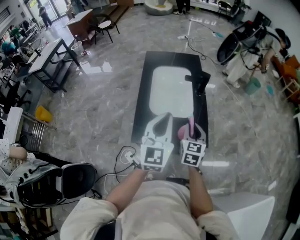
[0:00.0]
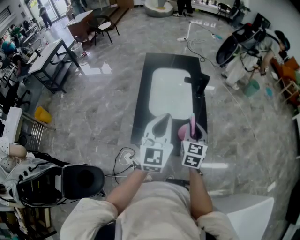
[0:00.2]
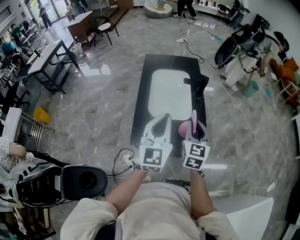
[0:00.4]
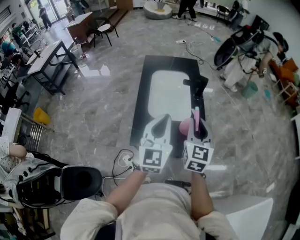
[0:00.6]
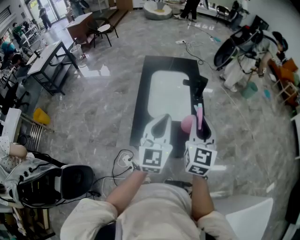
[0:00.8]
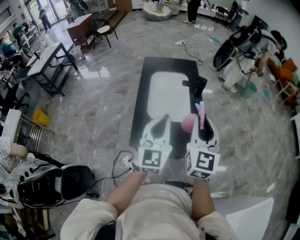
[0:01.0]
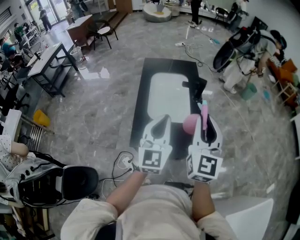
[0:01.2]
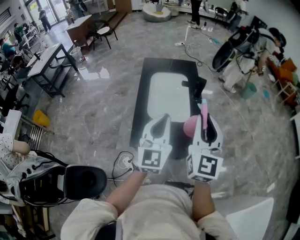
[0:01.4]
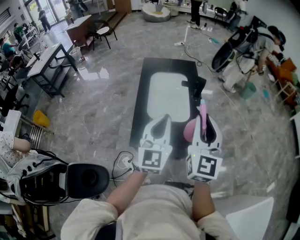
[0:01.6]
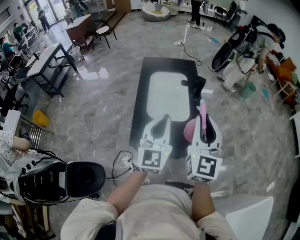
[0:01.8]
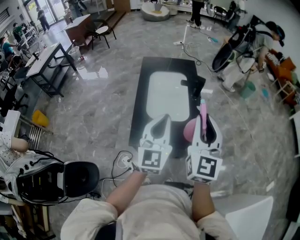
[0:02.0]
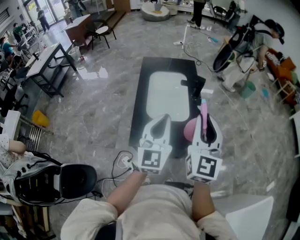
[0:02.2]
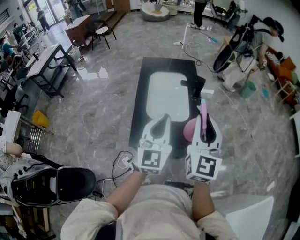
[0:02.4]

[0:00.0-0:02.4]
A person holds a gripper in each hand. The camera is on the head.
0:00.0 to 0:01.2: The right gripper travels upward by approximately 20 cm, and swivels roughly 30 degrees.
0:01.2 to 0:02.4: The grippers move only a little.

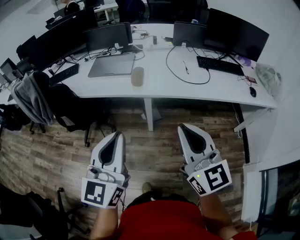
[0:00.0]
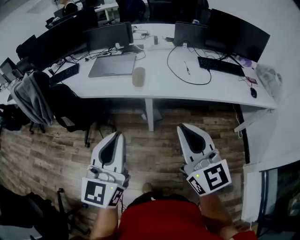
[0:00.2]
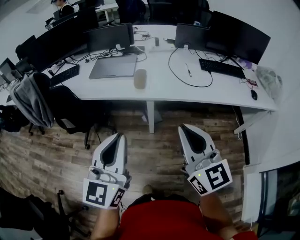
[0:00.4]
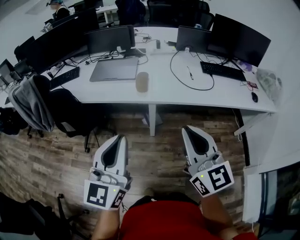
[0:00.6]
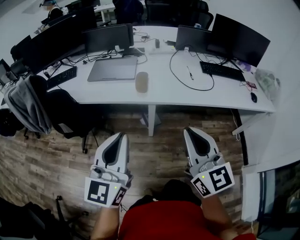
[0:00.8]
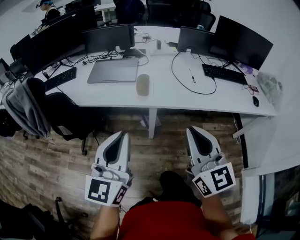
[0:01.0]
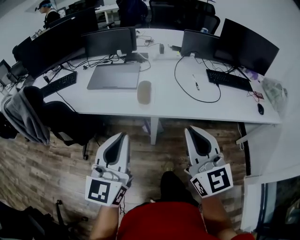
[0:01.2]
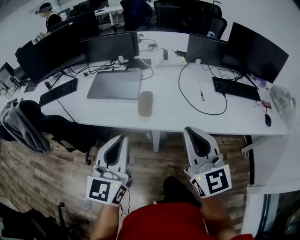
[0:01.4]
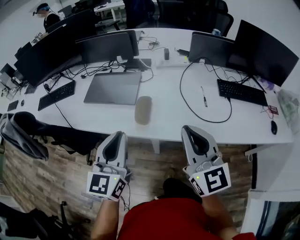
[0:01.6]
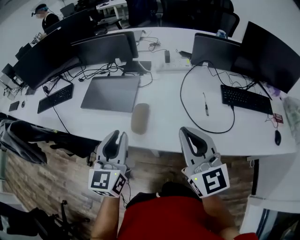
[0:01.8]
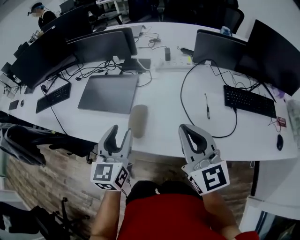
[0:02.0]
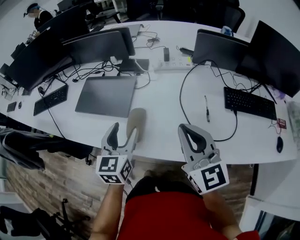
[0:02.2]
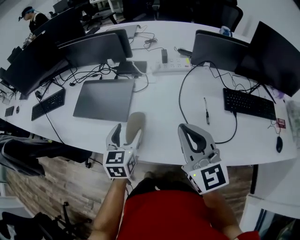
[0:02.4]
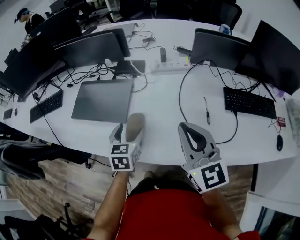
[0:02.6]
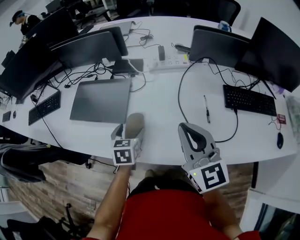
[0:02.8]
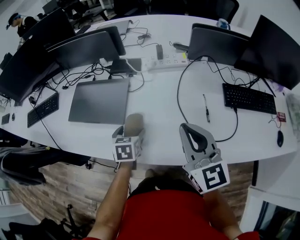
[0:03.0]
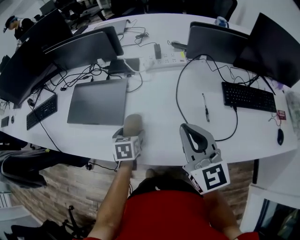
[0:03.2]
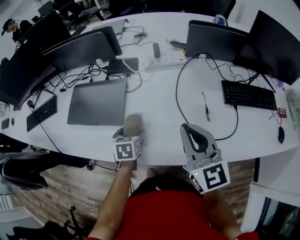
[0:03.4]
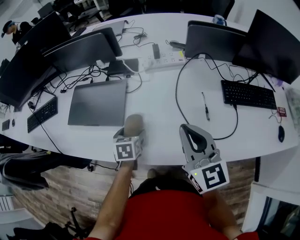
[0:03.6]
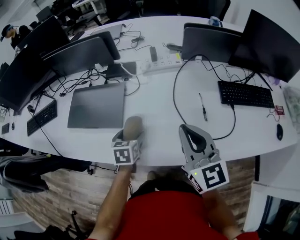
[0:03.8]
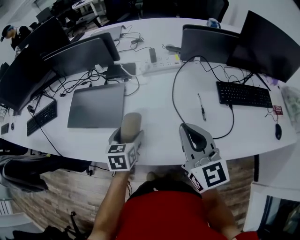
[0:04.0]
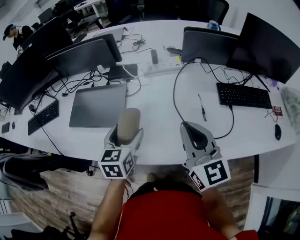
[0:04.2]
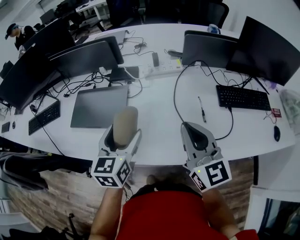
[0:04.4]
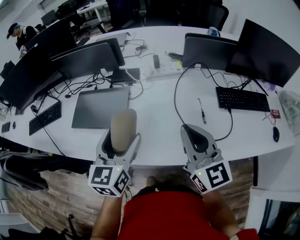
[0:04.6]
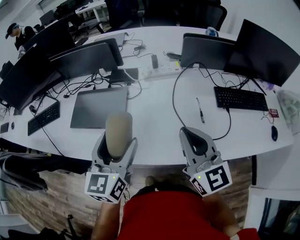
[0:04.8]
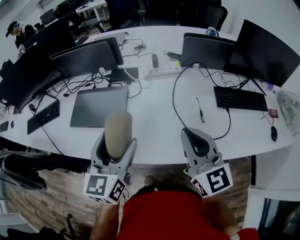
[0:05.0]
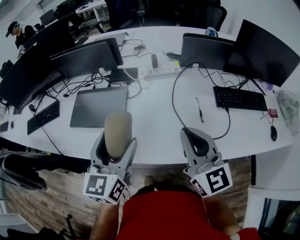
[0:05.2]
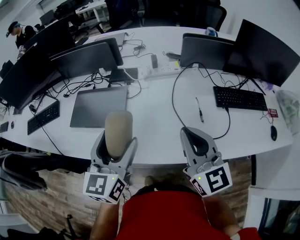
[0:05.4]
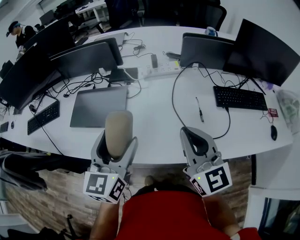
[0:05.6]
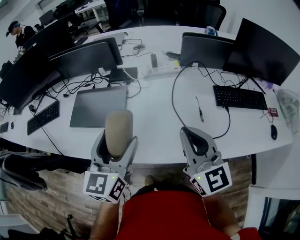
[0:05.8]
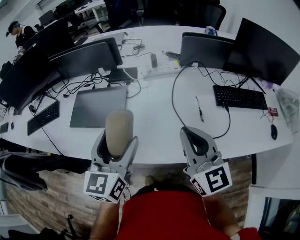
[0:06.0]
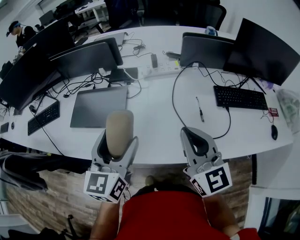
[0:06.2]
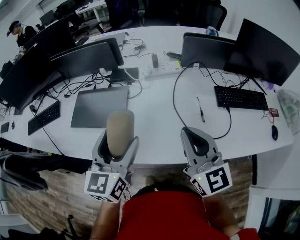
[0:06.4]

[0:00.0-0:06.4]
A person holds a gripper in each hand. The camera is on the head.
0:00.0 to 0:01.6: The grippers both shift forward by about 30 cm.
0:01.6 to 0:03.2: The right gripper goes approximately 15 cm forward. Meanwhile the left gripper is displaced downward and forward by approximately 35 cm, tilts its fingers some 50 degrees downward, and opens its fingers.
0:03.2 to 0:04.8: The right gripper changes place by some 5 cm; the left gripper goes some 25 cm upward, and tips its fingers upward by about 40 degrees.
0:04.8 to 0:06.4: Both grippers stay put.

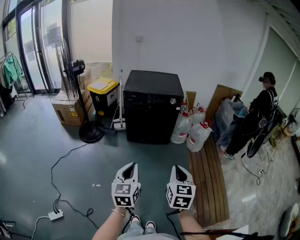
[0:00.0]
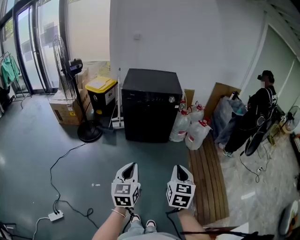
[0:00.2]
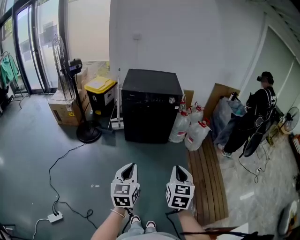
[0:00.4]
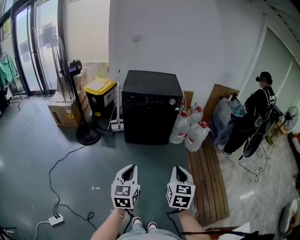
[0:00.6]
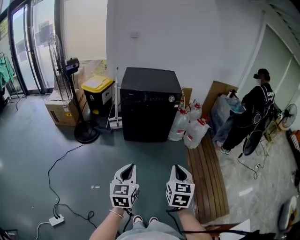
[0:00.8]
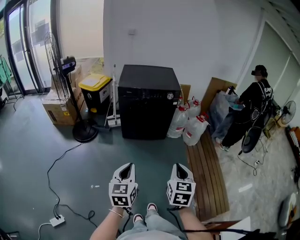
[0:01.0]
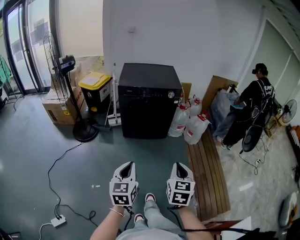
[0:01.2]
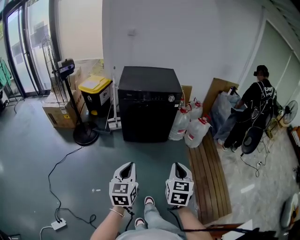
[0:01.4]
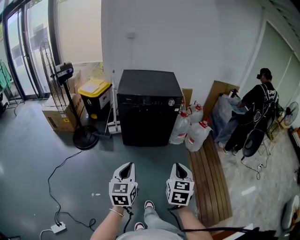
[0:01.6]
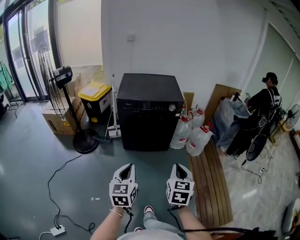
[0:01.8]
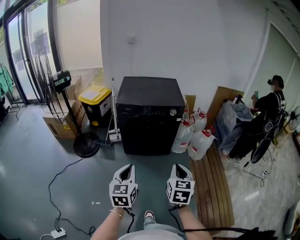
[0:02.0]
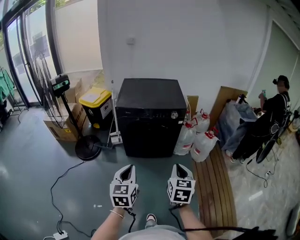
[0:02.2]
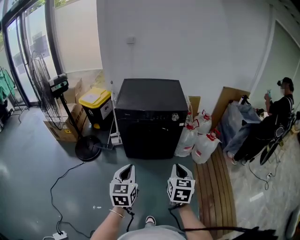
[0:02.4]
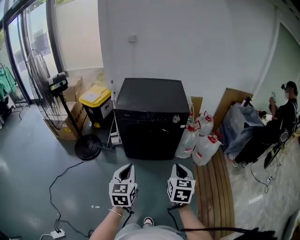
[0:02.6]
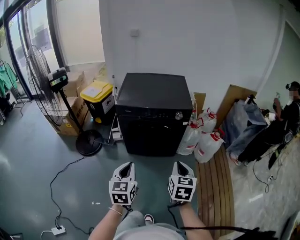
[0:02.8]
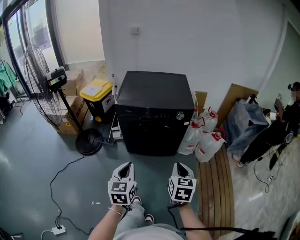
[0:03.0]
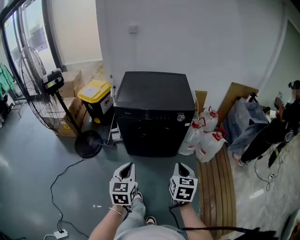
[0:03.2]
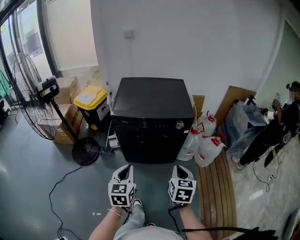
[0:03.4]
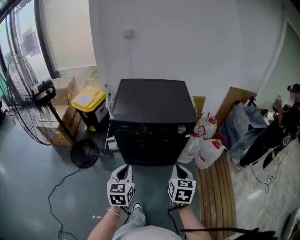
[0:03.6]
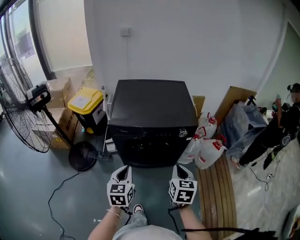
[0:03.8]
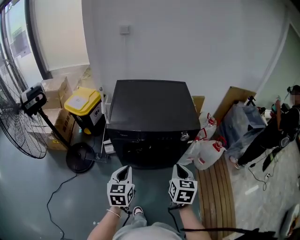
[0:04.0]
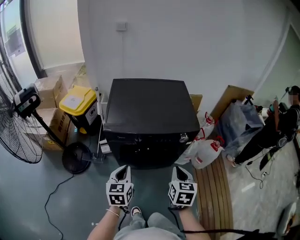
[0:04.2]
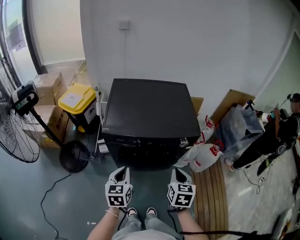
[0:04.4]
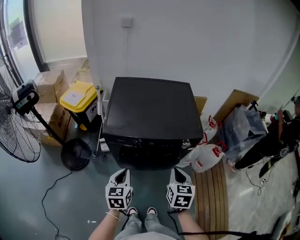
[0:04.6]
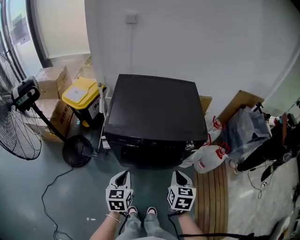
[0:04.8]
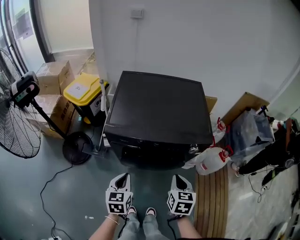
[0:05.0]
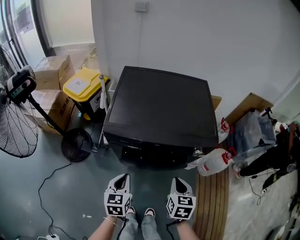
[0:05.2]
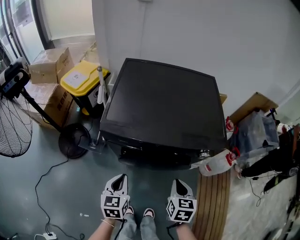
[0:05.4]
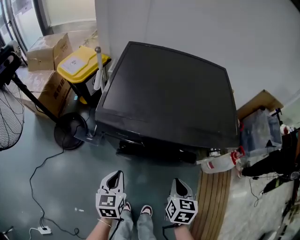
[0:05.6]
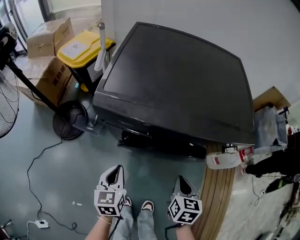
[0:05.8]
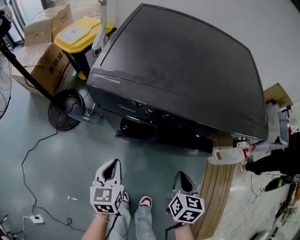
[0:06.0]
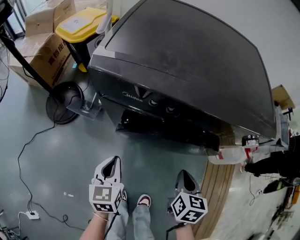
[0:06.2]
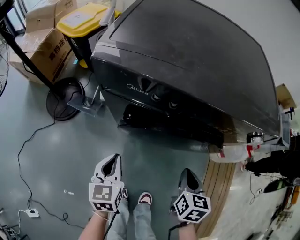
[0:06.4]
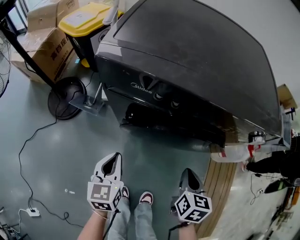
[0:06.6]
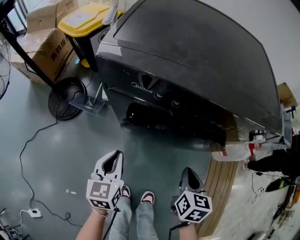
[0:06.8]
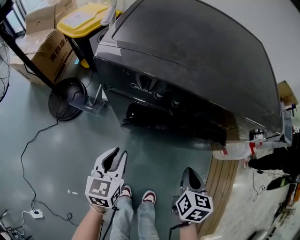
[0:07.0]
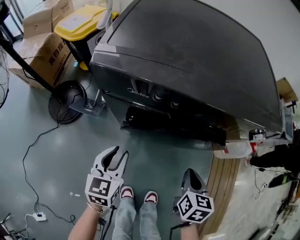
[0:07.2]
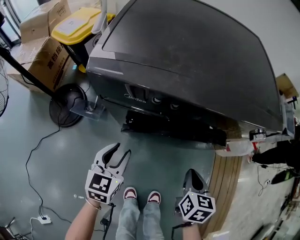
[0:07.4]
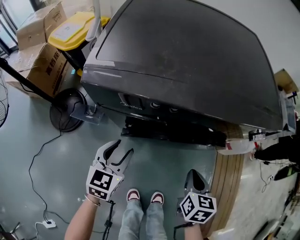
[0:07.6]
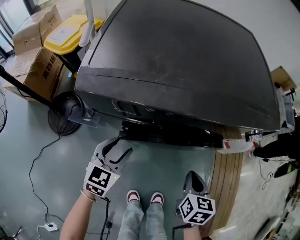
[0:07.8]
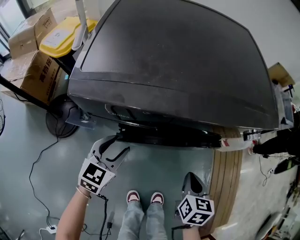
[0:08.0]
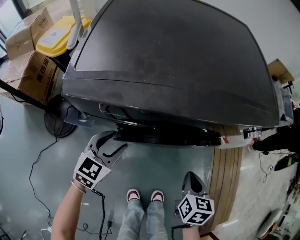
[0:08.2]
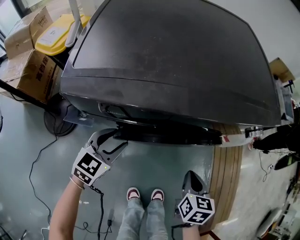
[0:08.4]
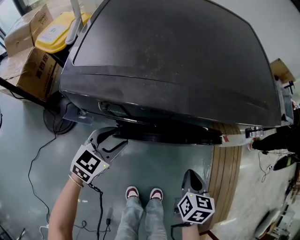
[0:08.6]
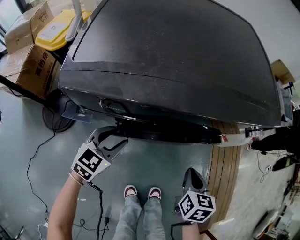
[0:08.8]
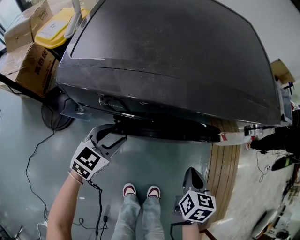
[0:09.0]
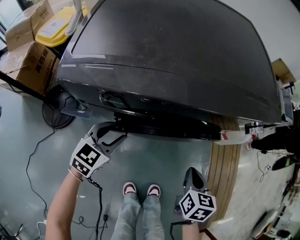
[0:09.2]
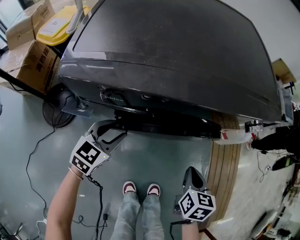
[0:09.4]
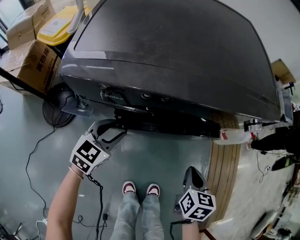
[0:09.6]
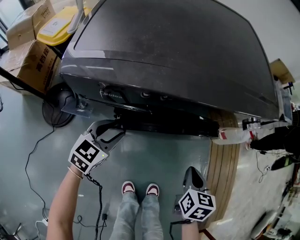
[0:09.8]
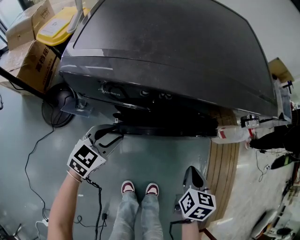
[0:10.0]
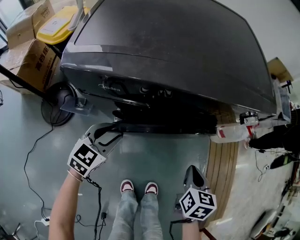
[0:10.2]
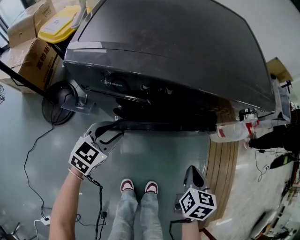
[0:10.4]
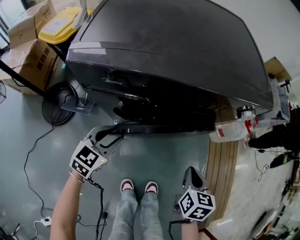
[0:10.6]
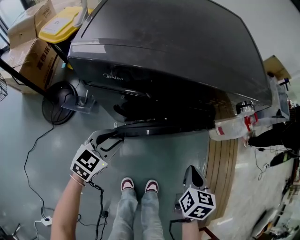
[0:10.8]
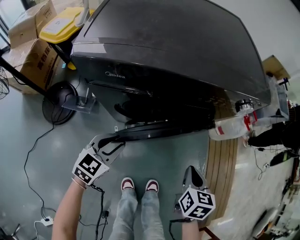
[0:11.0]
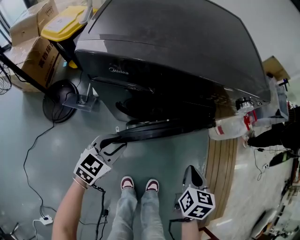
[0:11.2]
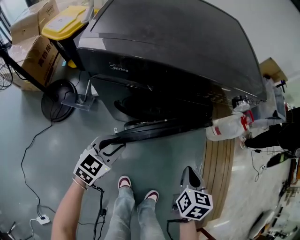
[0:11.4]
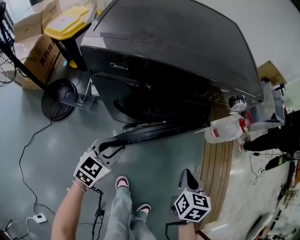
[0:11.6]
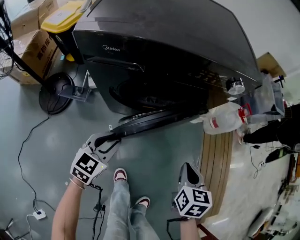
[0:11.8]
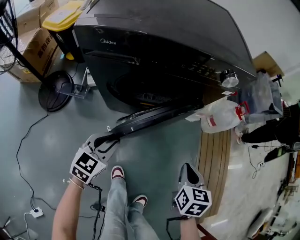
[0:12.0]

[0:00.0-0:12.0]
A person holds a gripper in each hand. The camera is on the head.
0:00.0 to 0:01.6: The right gripper goes roughly 10 cm forward; the left gripper heads forward and to the left, covering about 10 cm.
0:01.6 to 0:03.0: Both grippers move forward, roughly 25 cm.
0:03.0 to 0:04.4: The grippers both shift forward by approximately 25 cm.
0:04.4 to 0:06.0: Both grippers travel together downward, roughly 30 cm.
0:06.0 to 0:07.6: The left gripper shifts about 5 cm forward, changes its angle by approximately 30 degrees, and opens its fingers.
0:07.6 to 0:09.0: The left gripper moves roughly 5 cm.
0:09.0 to 0:10.4: The grippers move only a little.
0:10.4 to 0:12.0: The grippers both shift backward and to the right by about 15 cm.

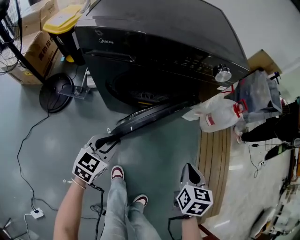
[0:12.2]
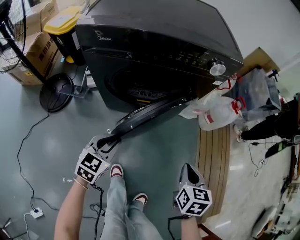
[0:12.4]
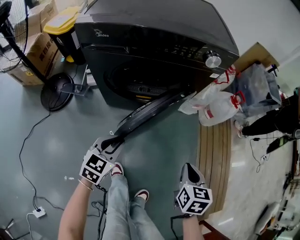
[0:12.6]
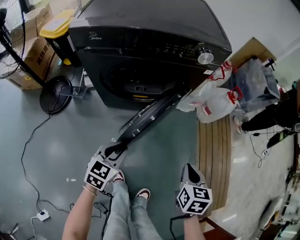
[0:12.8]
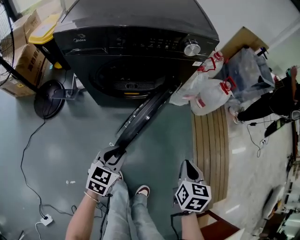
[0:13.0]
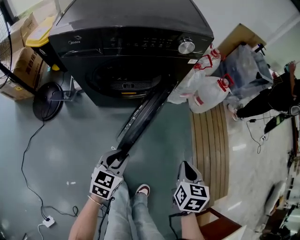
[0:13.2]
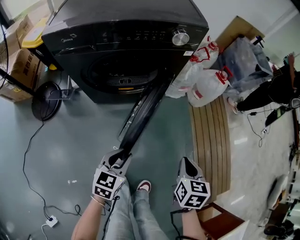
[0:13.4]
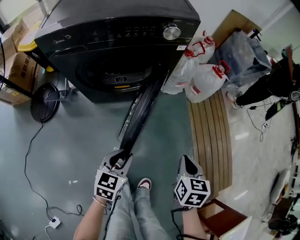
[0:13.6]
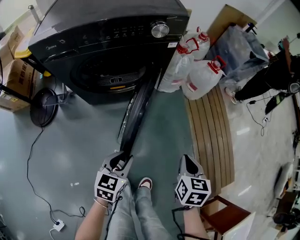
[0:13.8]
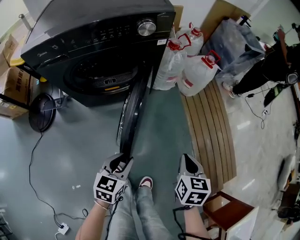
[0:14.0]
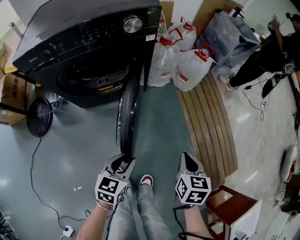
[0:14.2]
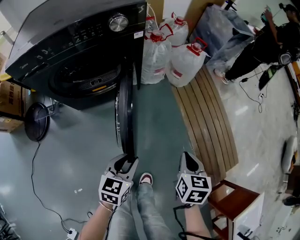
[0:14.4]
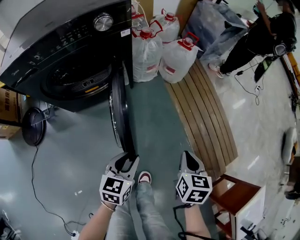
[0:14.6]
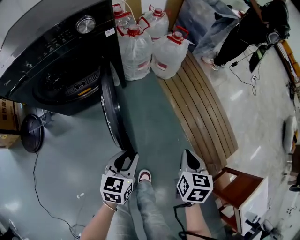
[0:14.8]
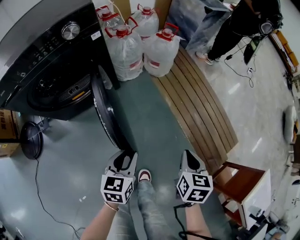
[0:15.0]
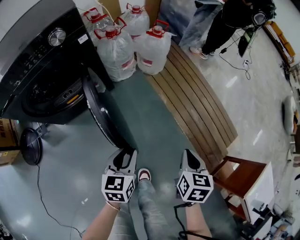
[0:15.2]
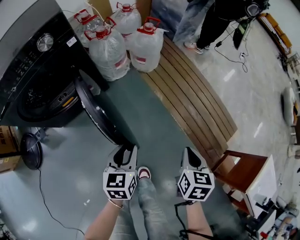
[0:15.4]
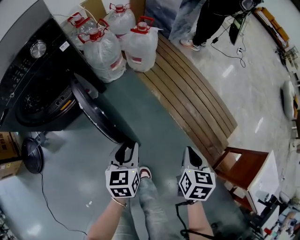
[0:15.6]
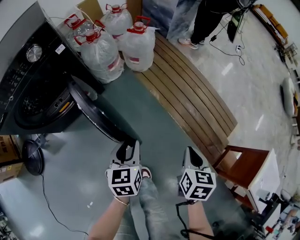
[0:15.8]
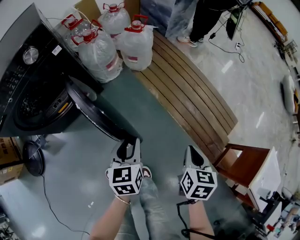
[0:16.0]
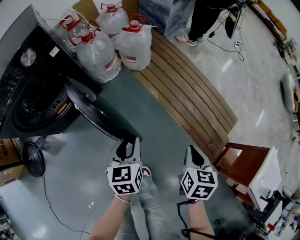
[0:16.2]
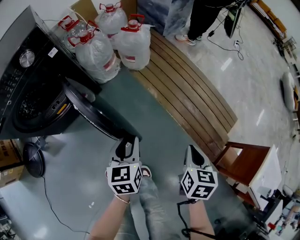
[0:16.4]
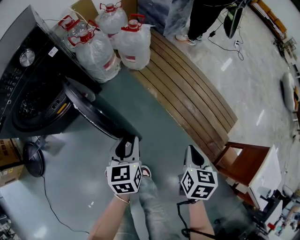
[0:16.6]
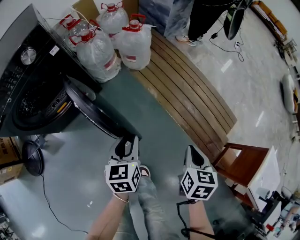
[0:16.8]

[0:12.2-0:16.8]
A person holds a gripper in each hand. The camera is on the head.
0:12.2 to 0:13.8: The left gripper goes roughly 20 cm to the right; the right gripper travels to the right and backward by about 15 cm.
0:13.8 to 0:15.2: The left gripper shifts roughly 15 cm to the right and forward; the right gripper moves to the right, some 15 cm, and changes its angle by about 20 degrees.
0:15.2 to 0:16.8: The left gripper travels forward and to the right by roughly 10 cm; the right gripper goes about 10 cm to the right.
